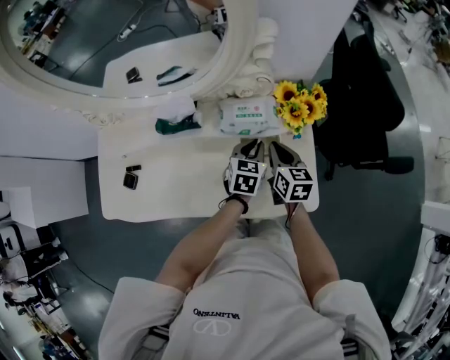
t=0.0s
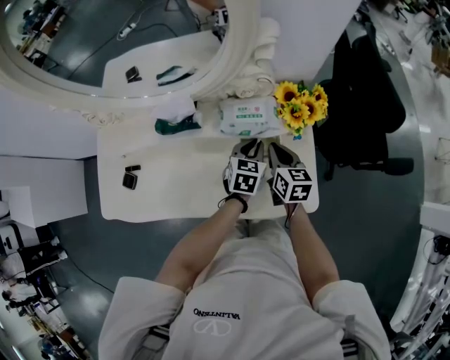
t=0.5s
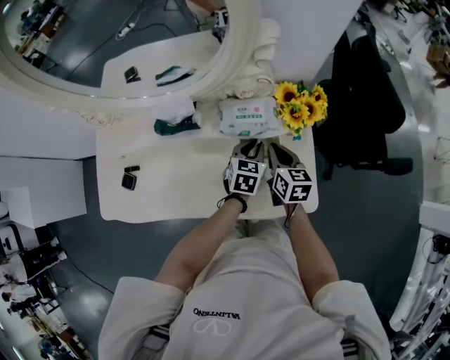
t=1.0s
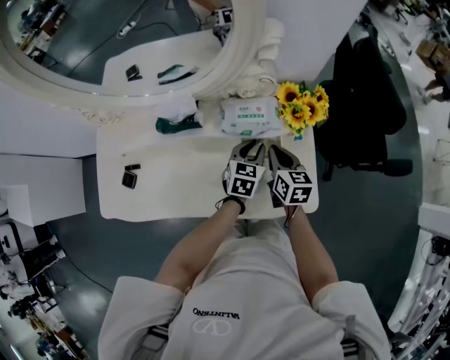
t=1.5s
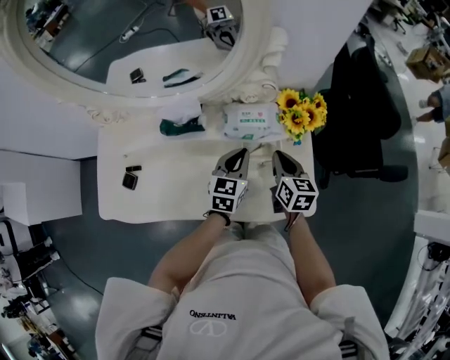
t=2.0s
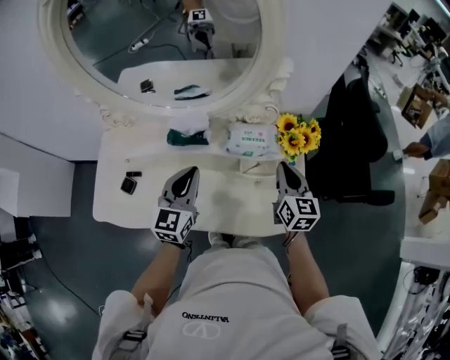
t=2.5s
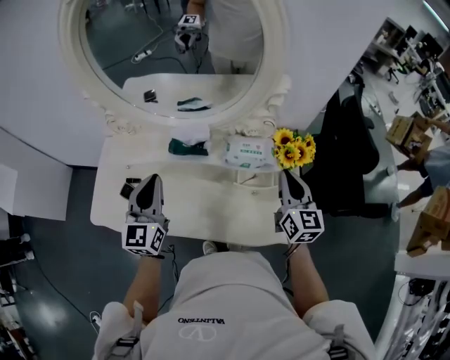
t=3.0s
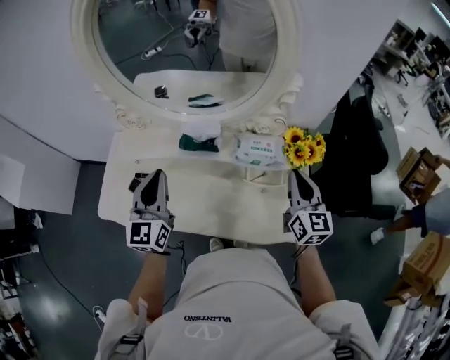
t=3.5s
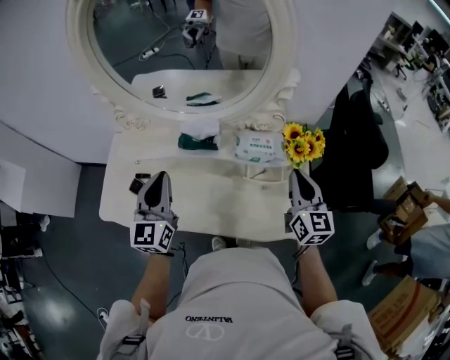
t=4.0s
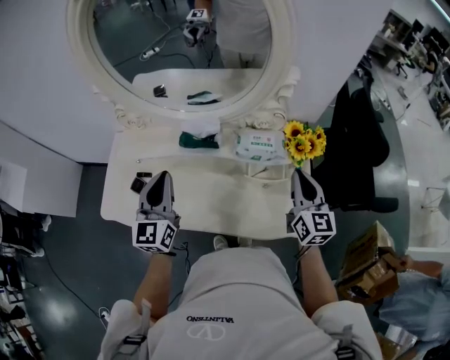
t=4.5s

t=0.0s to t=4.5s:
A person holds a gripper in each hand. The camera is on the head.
t=0.0s to t=2.0s: The left gripper is displaced to the left by some 5 cm.
t=2.0s to t=4.5s: The left gripper travels to the left and upward by approximately 30 cm, and swivels approximately 30 degrees. Meanwhile the right gripper is displaced upward by some 15 cm, and swivels some 20 degrees.

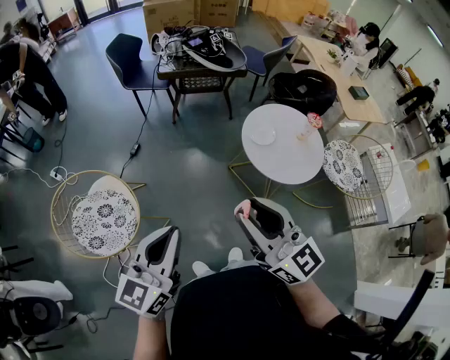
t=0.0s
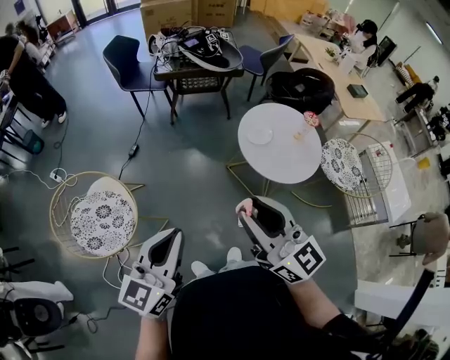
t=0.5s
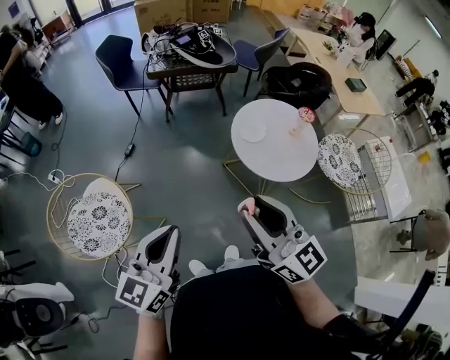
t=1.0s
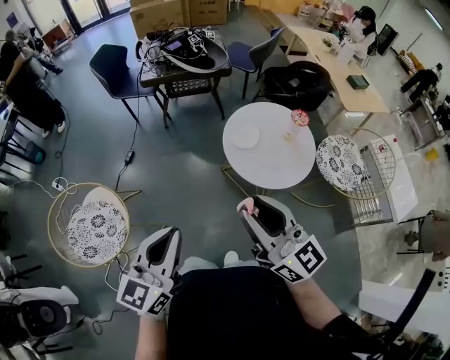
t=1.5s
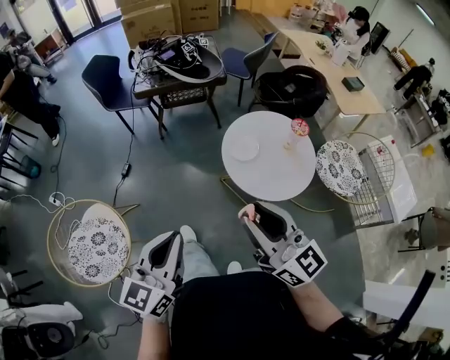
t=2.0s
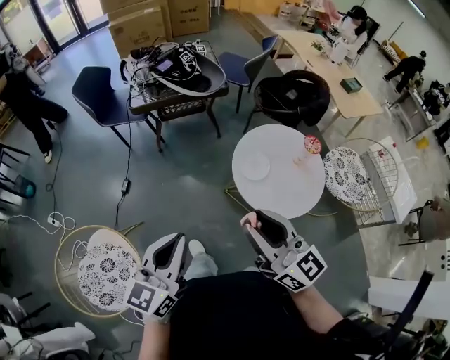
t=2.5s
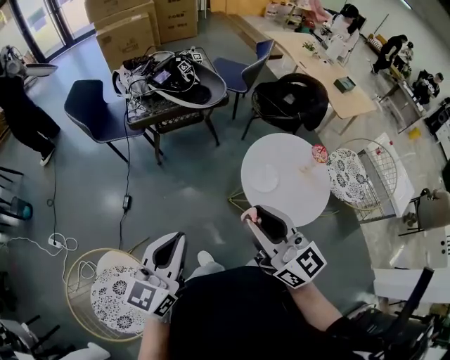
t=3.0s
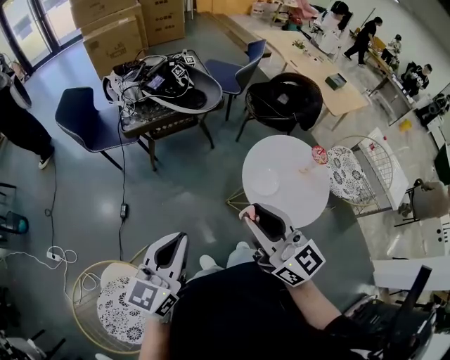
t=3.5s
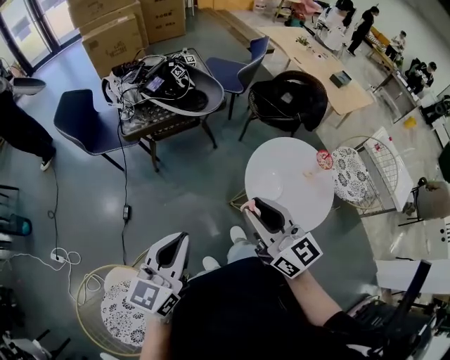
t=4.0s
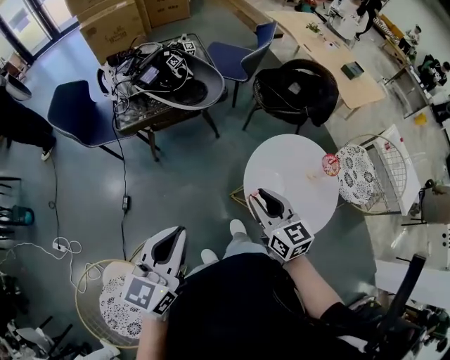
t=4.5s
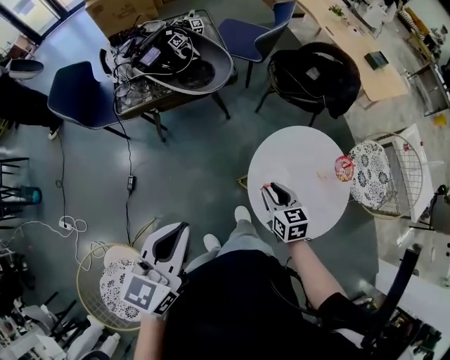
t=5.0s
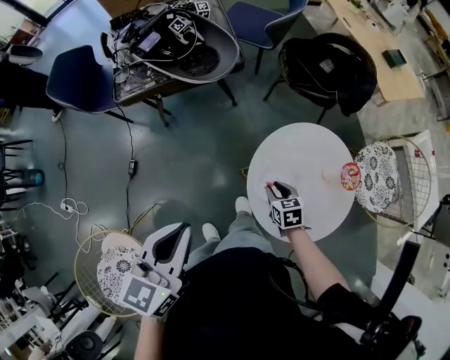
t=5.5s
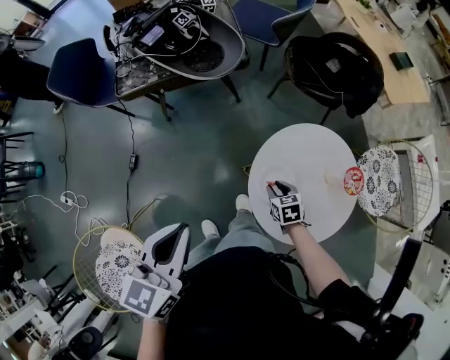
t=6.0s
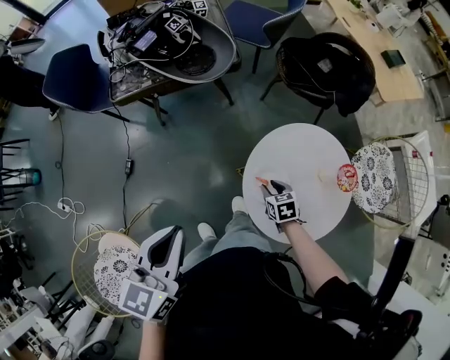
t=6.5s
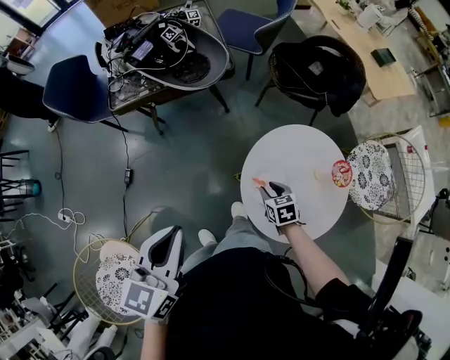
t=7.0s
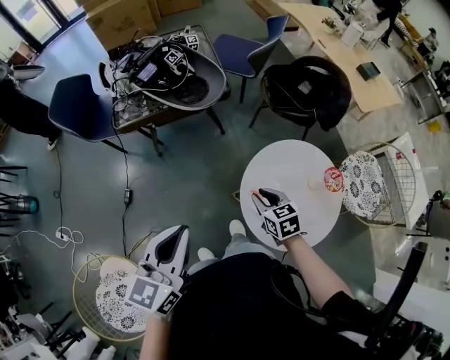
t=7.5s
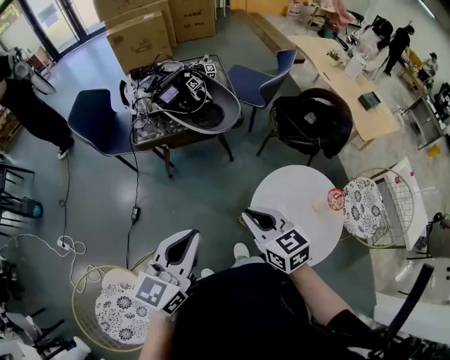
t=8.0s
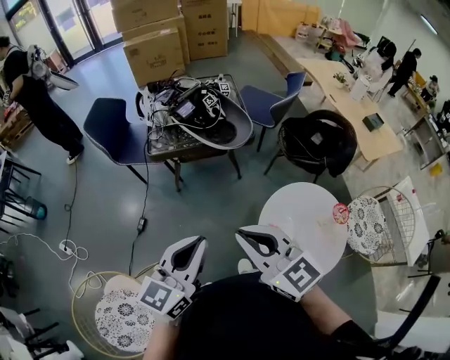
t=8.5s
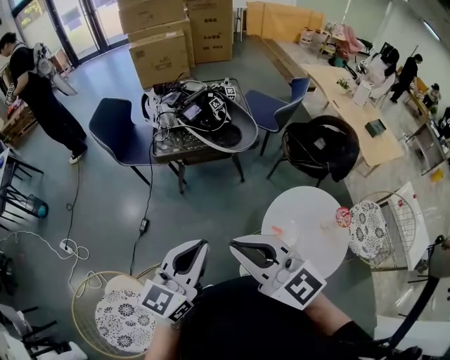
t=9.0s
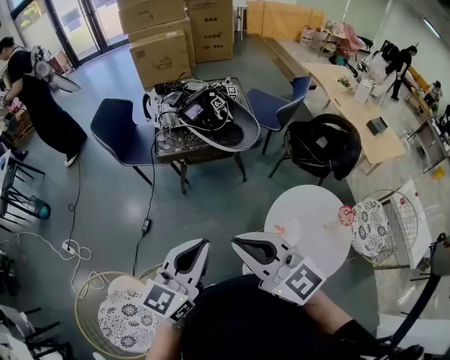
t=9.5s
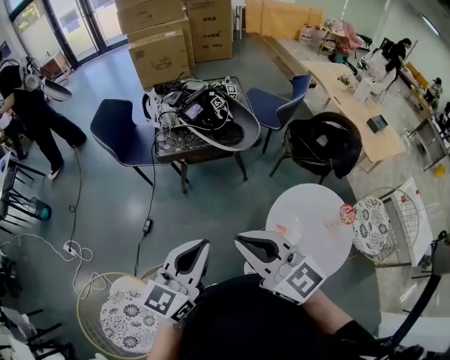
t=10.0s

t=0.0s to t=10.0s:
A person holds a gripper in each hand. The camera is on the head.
t=0.0s to t=2.0s: The two grippers go some 15 cm to the right and forward.
t=2.0s to t=4.0s: Both grippers move forward and to the left, roughly 30 cm.
t=4.0s to t=6.0s: The left gripper moves forward and to the right, about 15 cm. The right gripper goes approximately 40 cm downward and to the right, and points its fingers about 60 degrees further downward.
t=6.0s to t=8.0s: The right gripper heads upward and to the left, covering about 35 cm, tilts its fingers roughly 30 degrees upward, and closes, while the left gripper travels upward by roughly 5 cm.
t=8.0s to t=10.0s: The left gripper heads to the left, covering approximately 5 cm; the right gripper travels upward and to the left by approximately 20 cm, and rotates some 30 degrees.

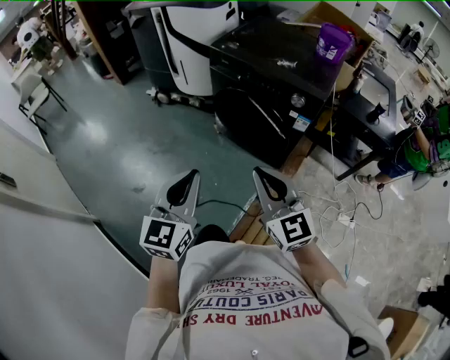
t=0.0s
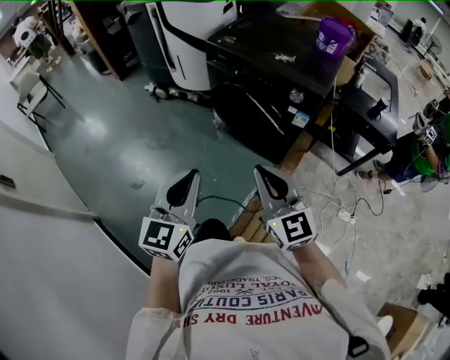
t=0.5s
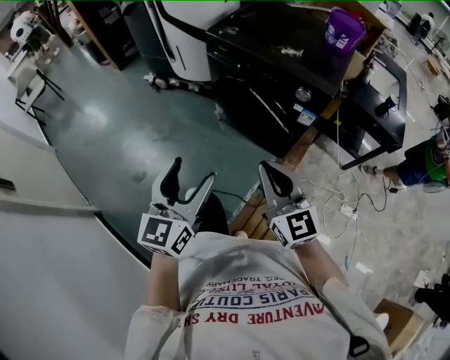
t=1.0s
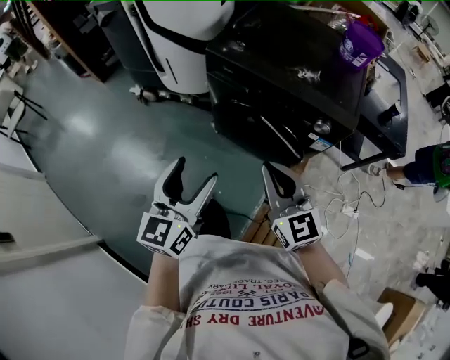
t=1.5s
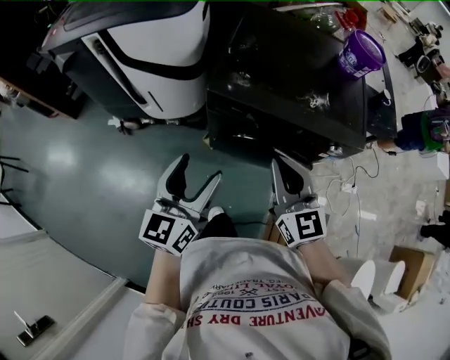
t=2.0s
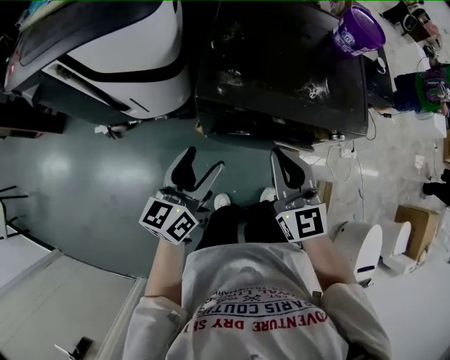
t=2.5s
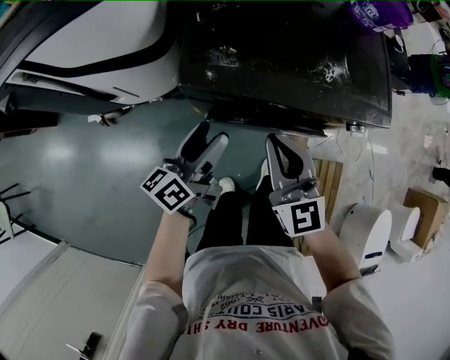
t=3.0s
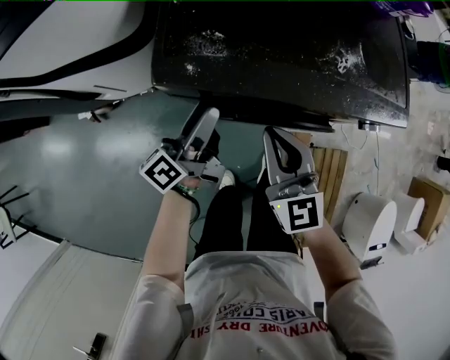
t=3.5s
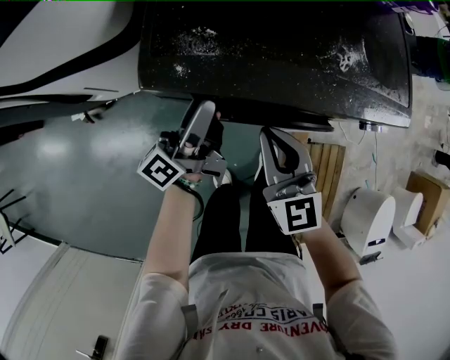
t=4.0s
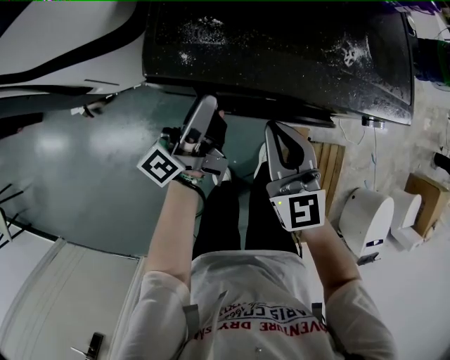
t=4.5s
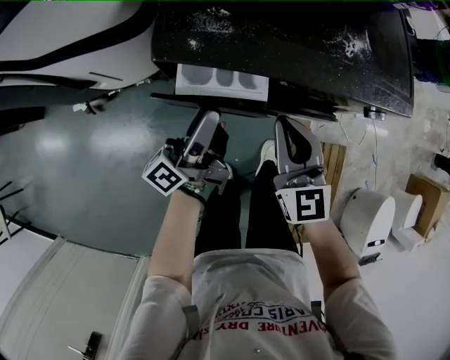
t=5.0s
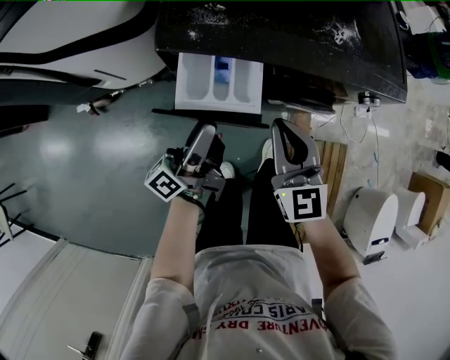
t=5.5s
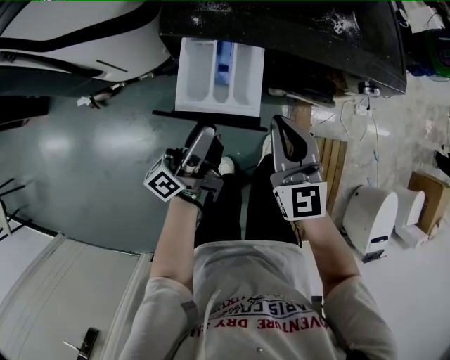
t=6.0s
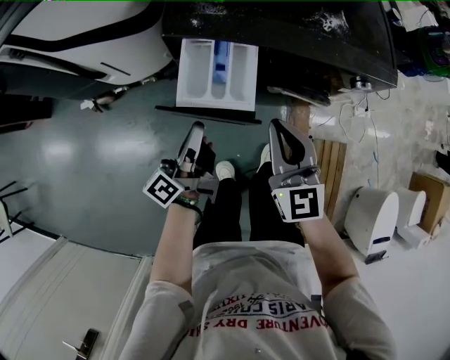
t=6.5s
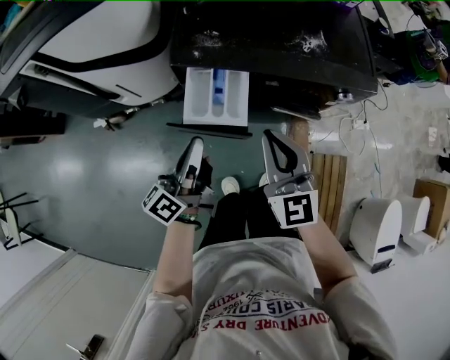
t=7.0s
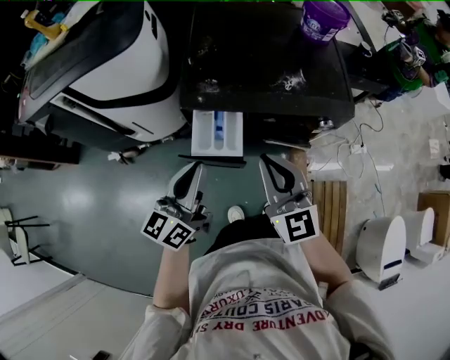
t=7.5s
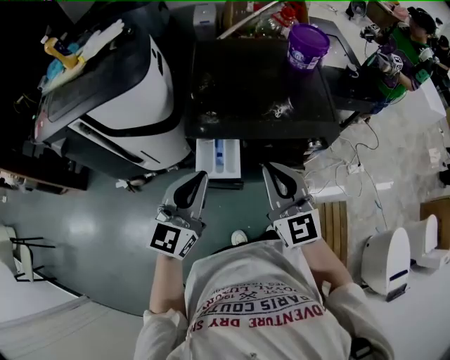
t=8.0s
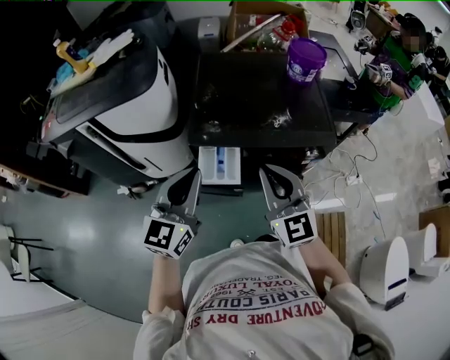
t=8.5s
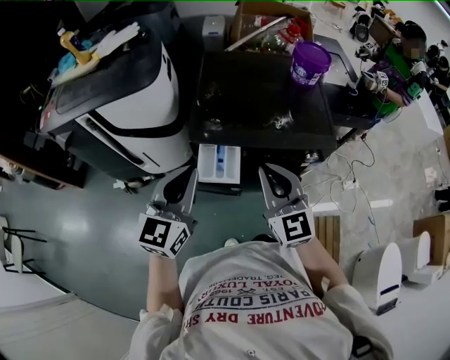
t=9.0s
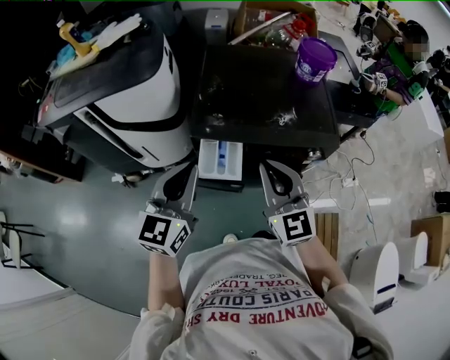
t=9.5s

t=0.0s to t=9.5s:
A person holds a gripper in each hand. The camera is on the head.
t=0.0s to t=2.0s: Both grippers are carried forward, approximately 50 cm. The right gripper changes its angle by approximately 30 degrees. The left gripper changes its angle by about 30 degrees, and opens.
t=2.0s to t=4.0s: The right gripper heads downward and forward, covering roughly 20 cm; the left gripper travels forward and downward by approximately 30 cm, and rolls counterclockwise, seen from behind, by some 60 degrees.
t=4.0s to t=5.5s: The left gripper shifts about 10 cm backward; the right gripper moves backward, roughly 5 cm.
t=5.5s to t=7.5s: Both grippers move upward, about 20 cm. The left gripper rotates around the line of its fingers by about 50 degrees, clockwise from behind, and closes its fingers.
t=7.5s to t=9.5s: Both grippers move upward, roughly 10 cm. The left gripper swivels approximately 30 degrees.

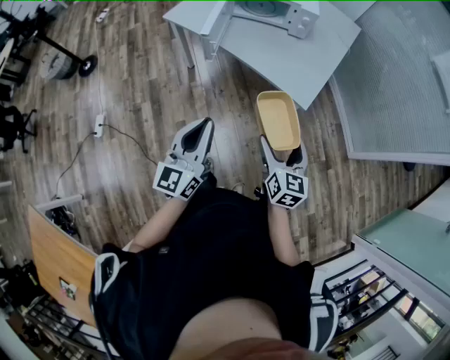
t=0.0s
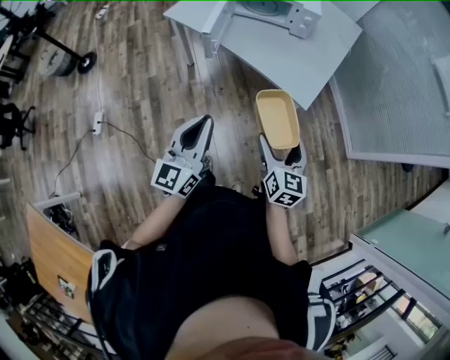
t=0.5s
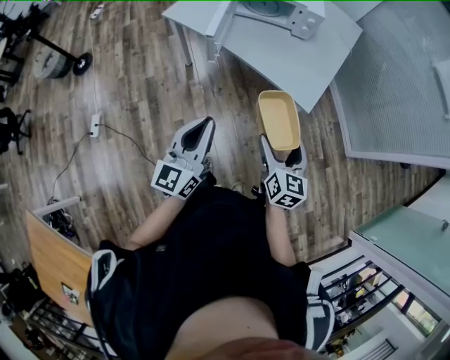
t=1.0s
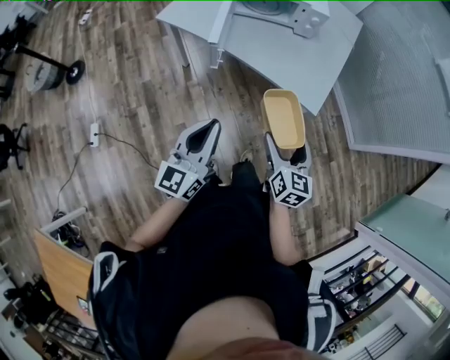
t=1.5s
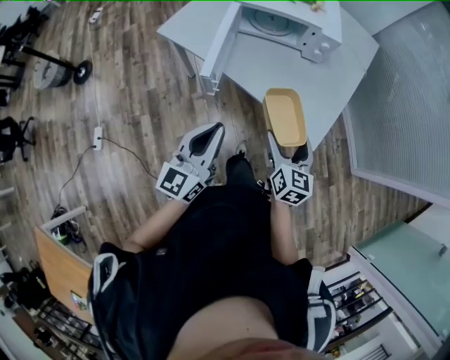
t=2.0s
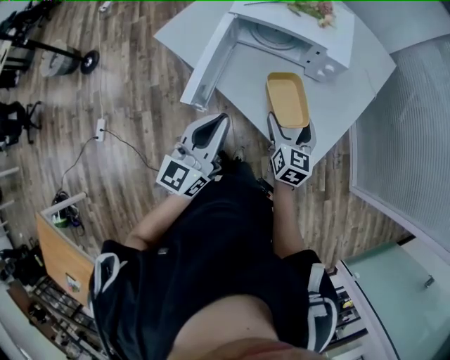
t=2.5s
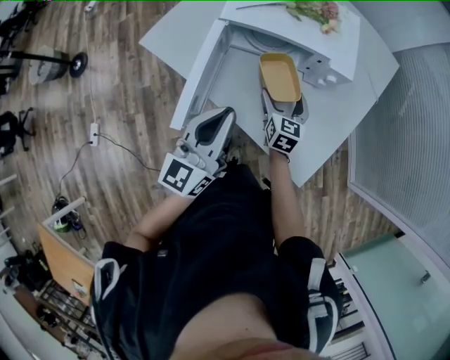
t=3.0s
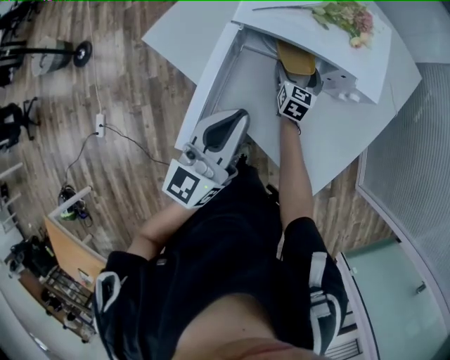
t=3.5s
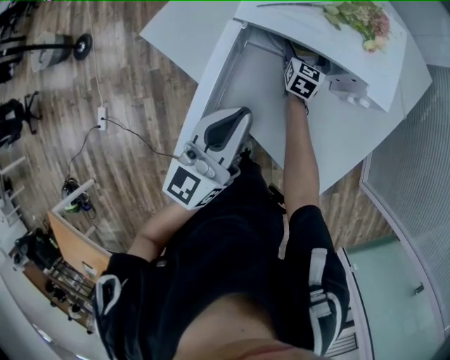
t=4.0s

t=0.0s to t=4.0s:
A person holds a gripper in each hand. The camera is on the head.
t=0.0s to t=2.0s: Both grippers move forward, approximately 25 cm.
t=2.0s to t=4.0s: The left gripper heads forward, covering roughly 40 cm. Meanwhile the right gripper shifts some 60 cm forward.
